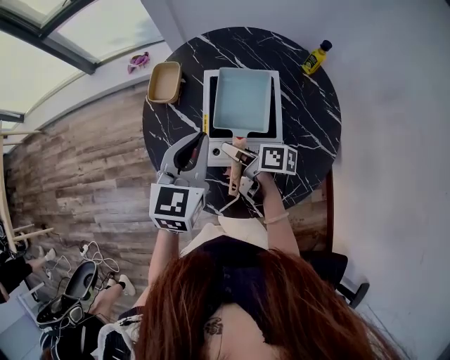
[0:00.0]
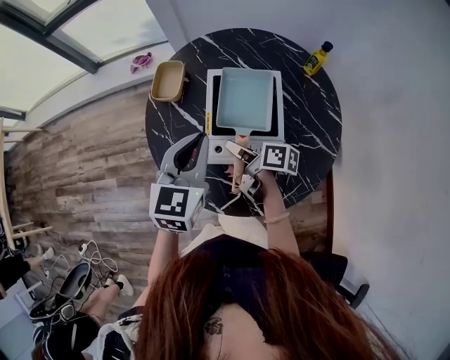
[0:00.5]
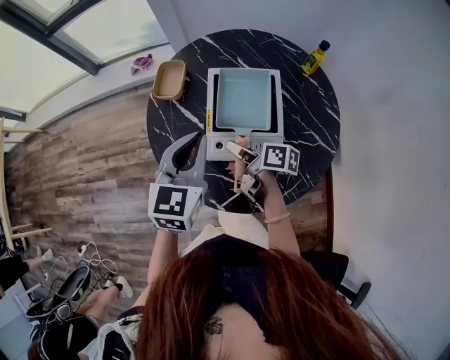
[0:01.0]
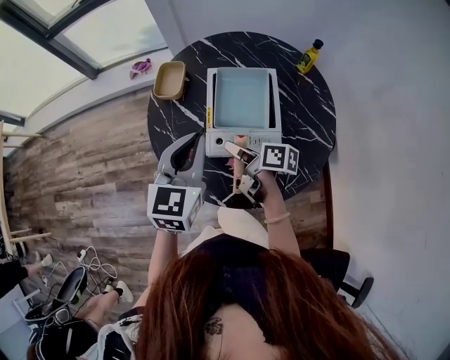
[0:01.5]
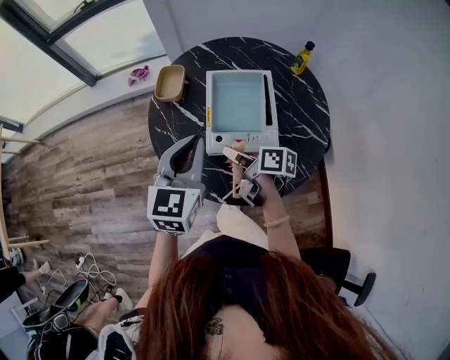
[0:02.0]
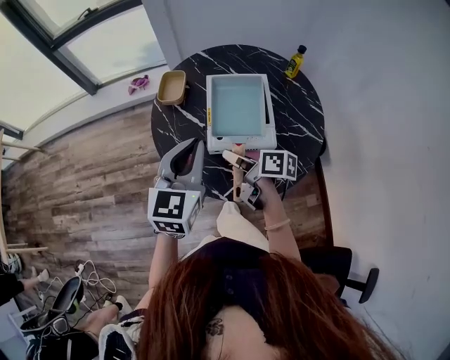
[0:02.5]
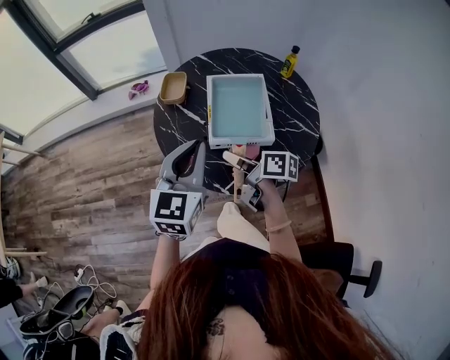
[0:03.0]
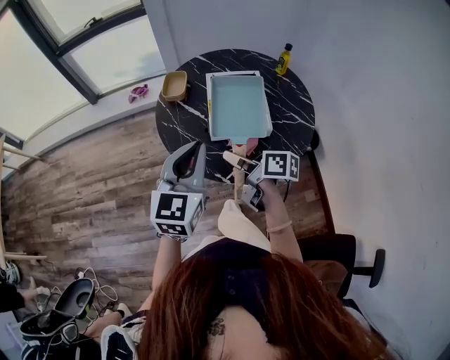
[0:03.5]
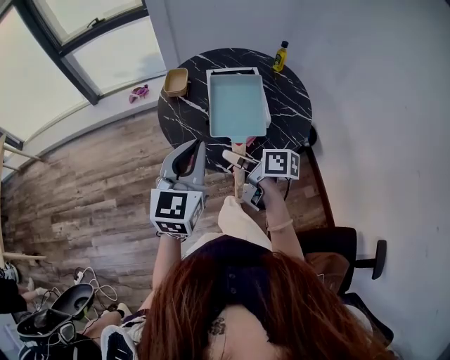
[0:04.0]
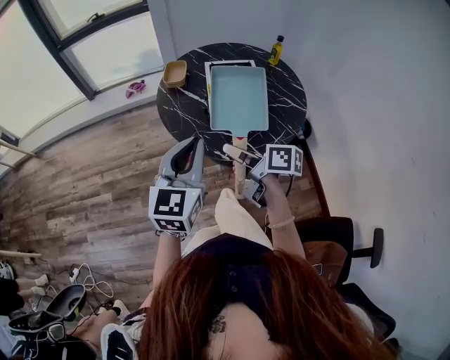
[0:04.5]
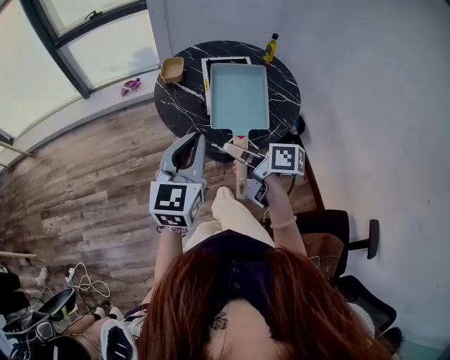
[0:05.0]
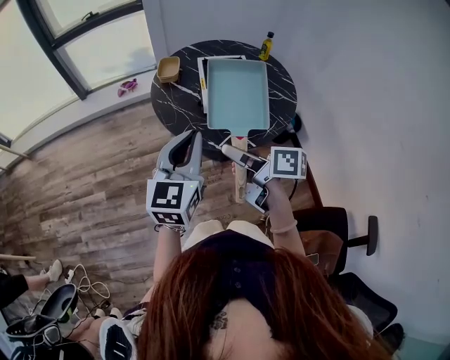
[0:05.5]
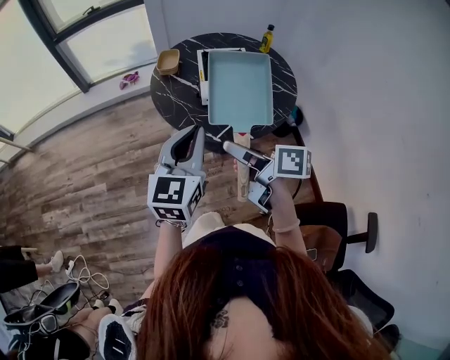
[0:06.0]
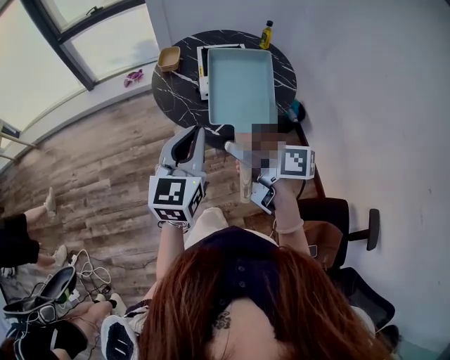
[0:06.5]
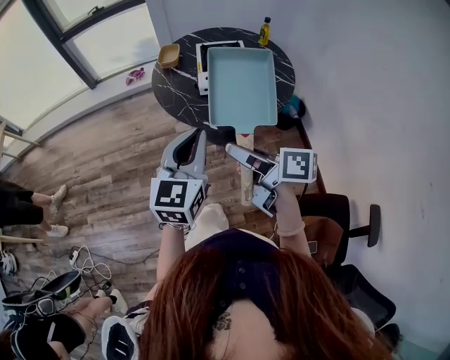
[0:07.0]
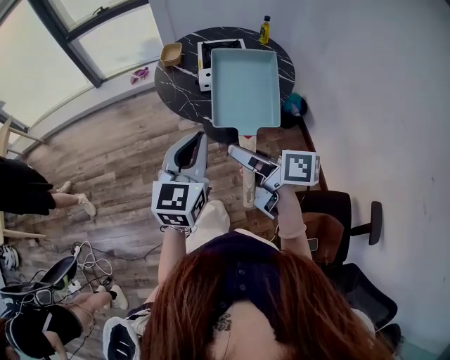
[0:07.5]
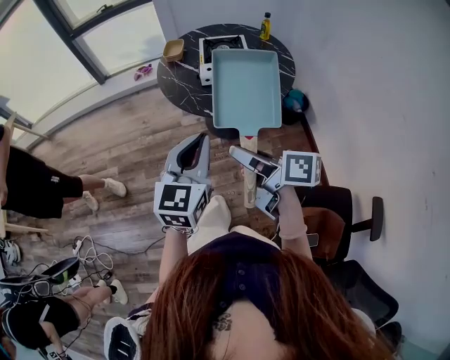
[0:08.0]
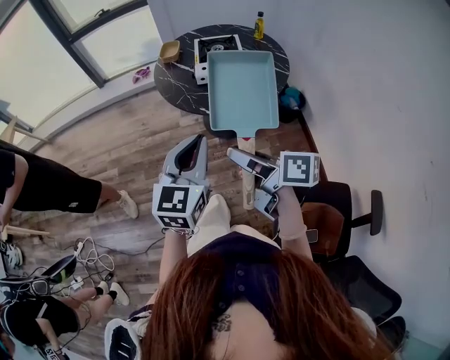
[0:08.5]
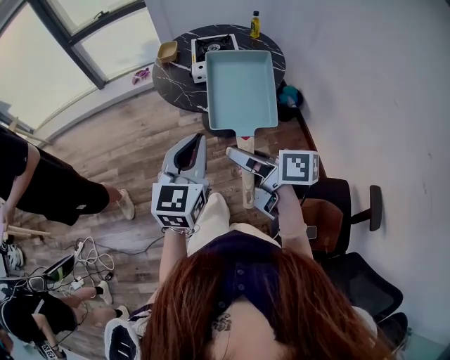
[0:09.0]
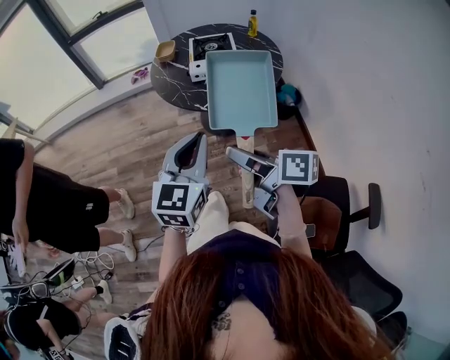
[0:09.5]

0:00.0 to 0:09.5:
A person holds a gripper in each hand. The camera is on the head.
0:00.0 to 0:02.0: The right gripper travels backward by roughly 5 cm. Meanwhile the left gripper shifts approximately 10 cm backward and to the left.
0:02.0 to 0:04.0: The left gripper heads backward and to the left, covering some 20 cm, while the right gripper shifts about 20 cm backward, upward and to the left.
0:04.0 to 0:05.5: The left gripper shifts approximately 10 cm backward, while the right gripper shifts approximately 15 cm backward and upward.
0:05.5 to 0:07.5: The grippers both shift backward by approximately 15 cm.
0:07.5 to 0:09.5: The grippers both shift backward by some 10 cm.

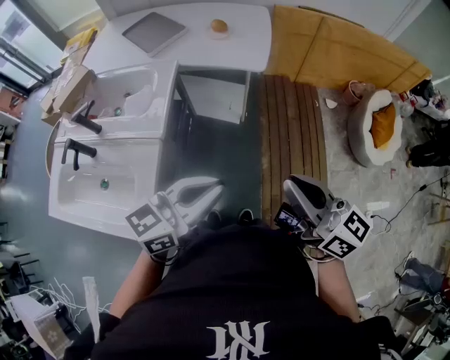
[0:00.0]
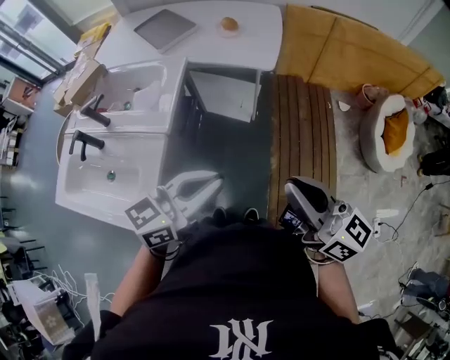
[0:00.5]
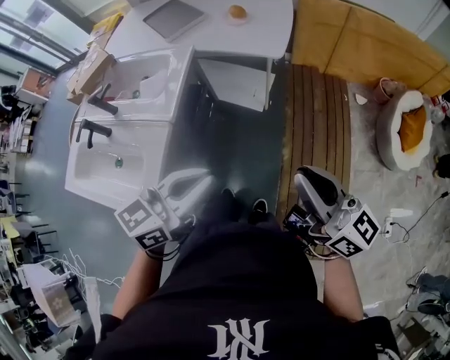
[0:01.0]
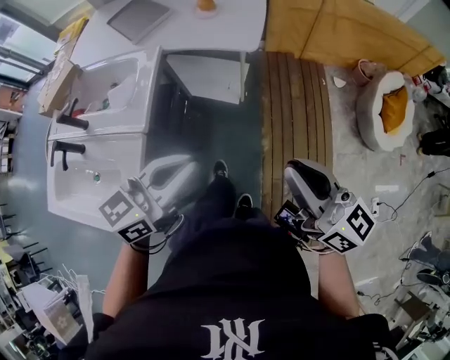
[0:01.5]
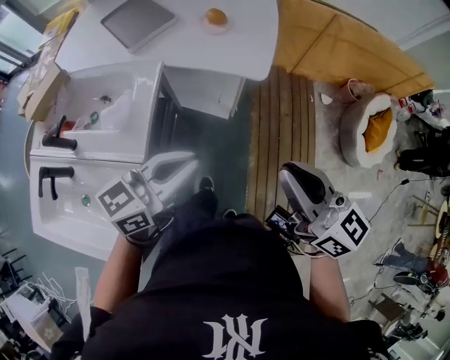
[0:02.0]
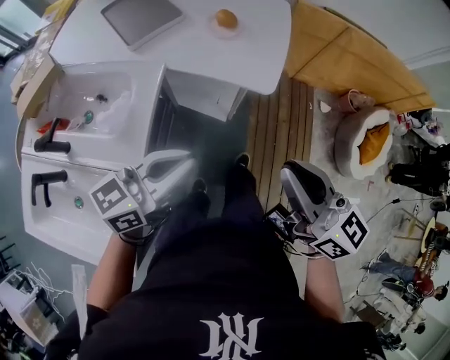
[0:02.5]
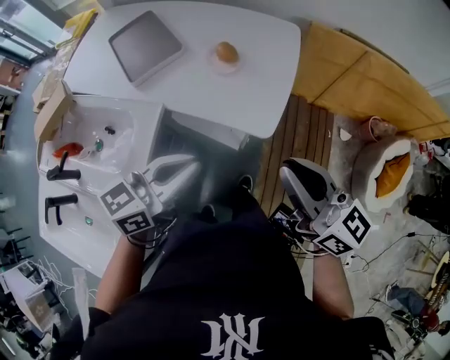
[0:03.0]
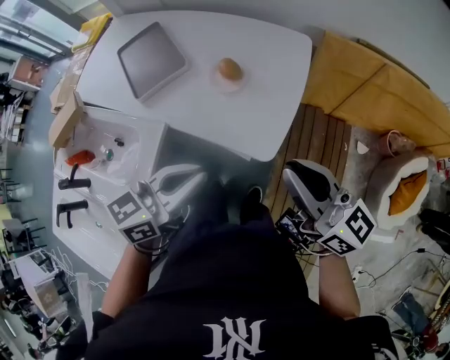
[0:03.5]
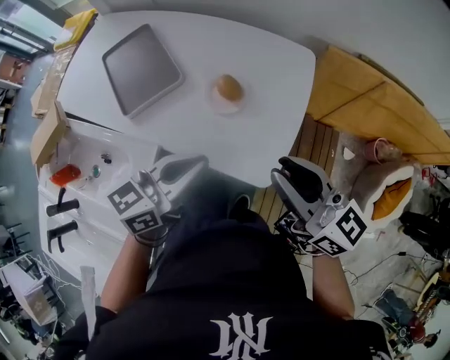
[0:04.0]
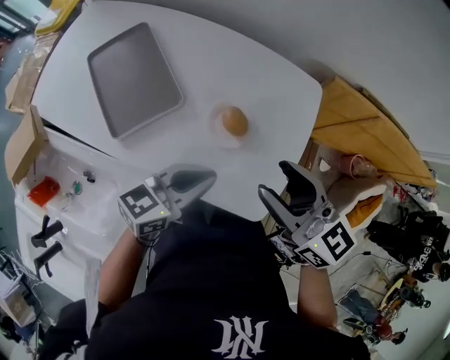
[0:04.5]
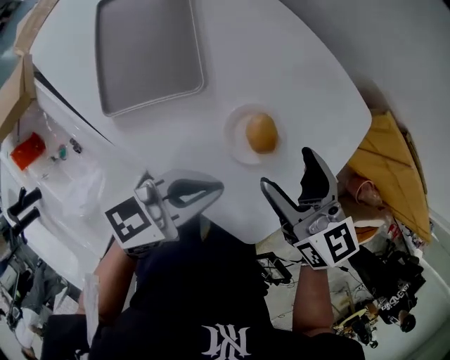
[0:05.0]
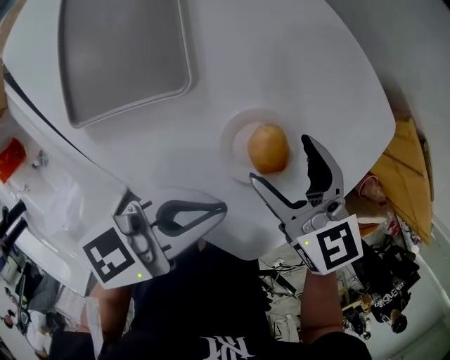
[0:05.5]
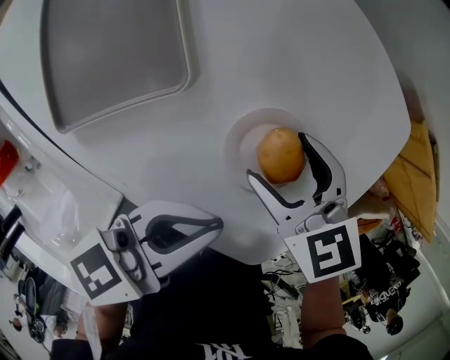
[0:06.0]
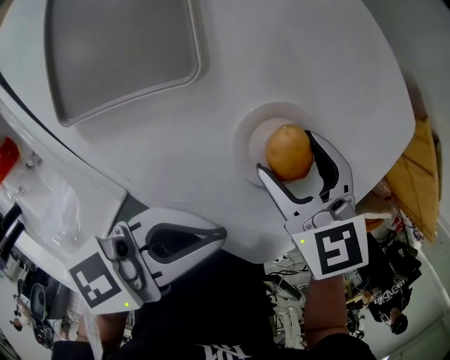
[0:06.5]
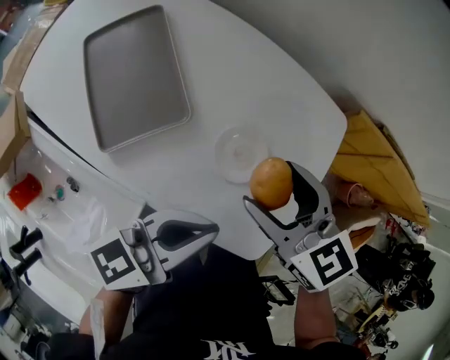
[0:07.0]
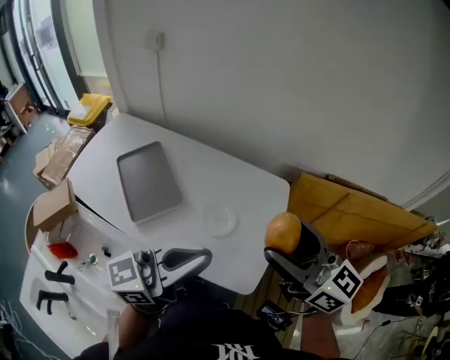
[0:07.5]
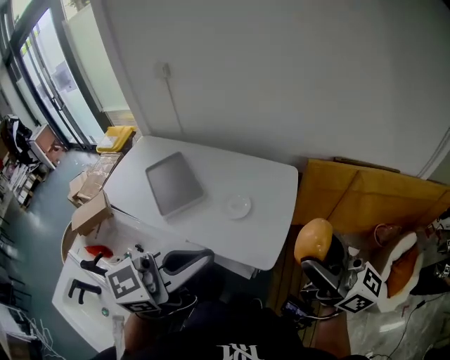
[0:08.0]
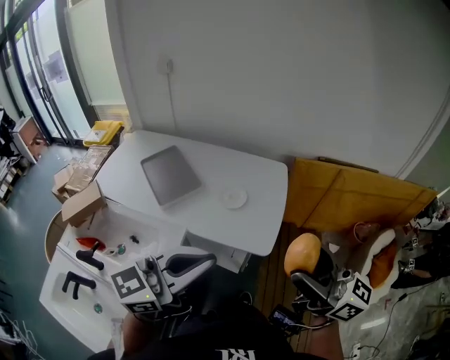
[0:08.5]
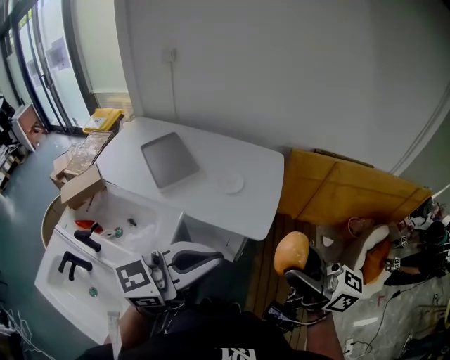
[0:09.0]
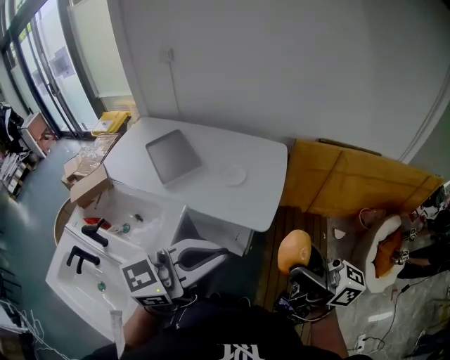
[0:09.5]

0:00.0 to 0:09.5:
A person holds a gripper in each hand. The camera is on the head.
0:00.0 to 0:02.0: Both grippers travel together forward, approximately 20 cm.
0:02.0 to 0:04.0: The two grippers travel together, forward, some 40 cm.
0:04.0 to 0:05.5: The left gripper travels forward and downward by roughly 25 cm, while the right gripper goes some 40 cm downward, forward and to the left, points its fingers approximately 30 degrees further downward, and opens its fingers.
0:05.5 to 0:07.5: Both grippers move upward and backward, roughly 40 cm. The right gripper points its fingers roughly 40 degrees further upward. The left gripper turns by approximately 40 degrees.
0:07.5 to 0:09.5: Both grippers move backward, some 35 cm. The right gripper changes its angle by about 30 degrees.

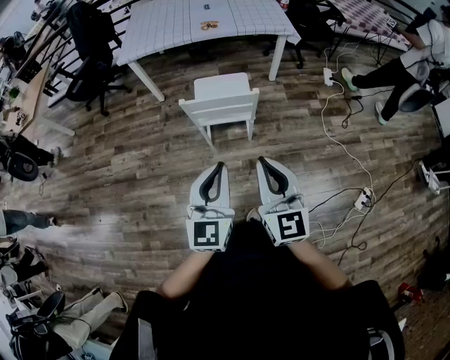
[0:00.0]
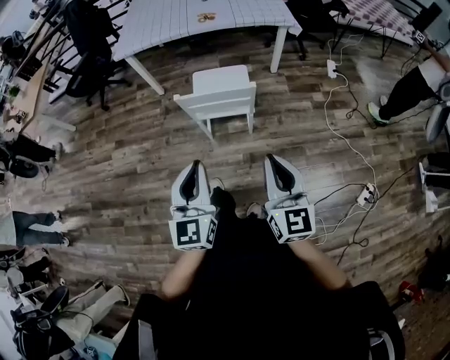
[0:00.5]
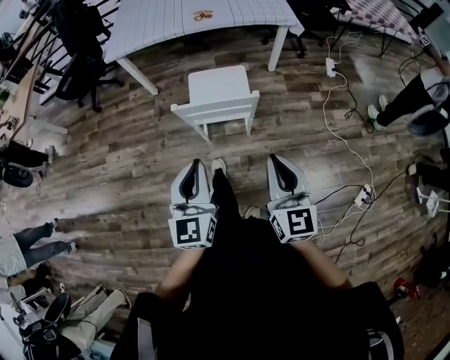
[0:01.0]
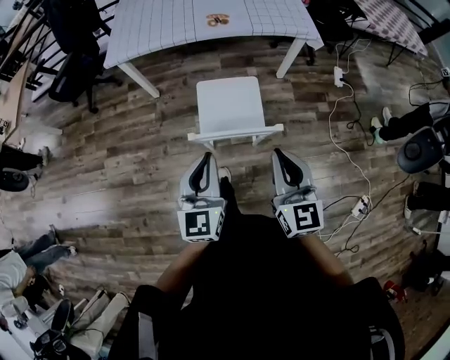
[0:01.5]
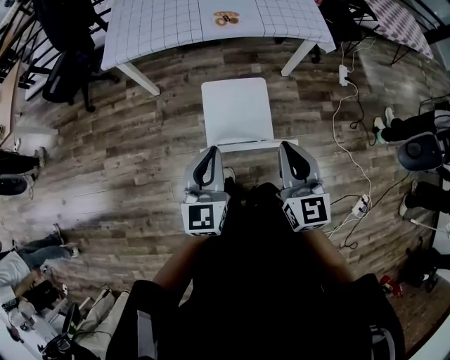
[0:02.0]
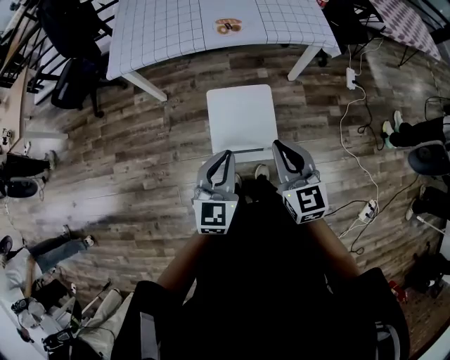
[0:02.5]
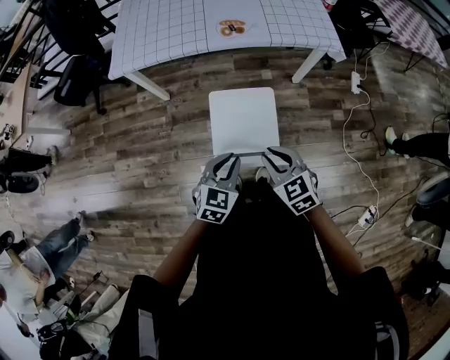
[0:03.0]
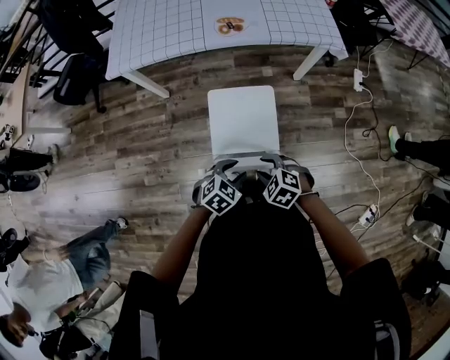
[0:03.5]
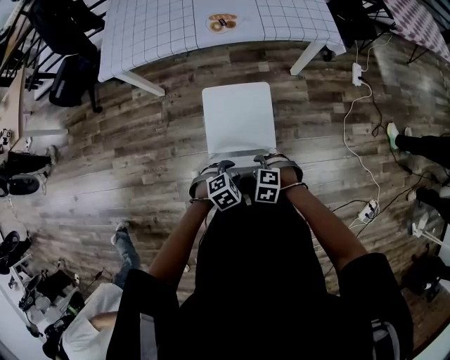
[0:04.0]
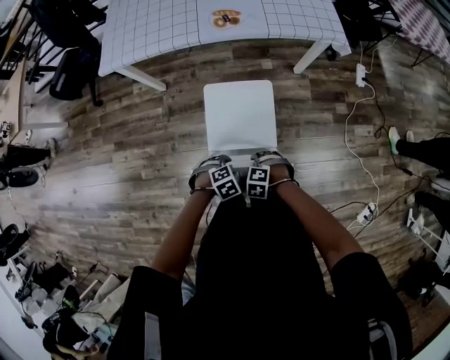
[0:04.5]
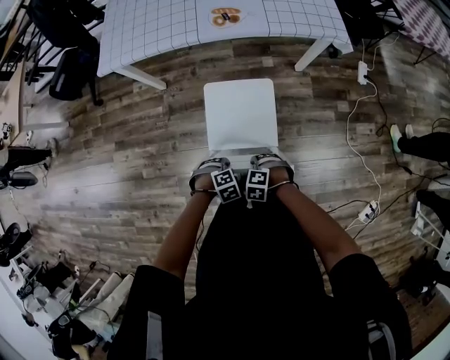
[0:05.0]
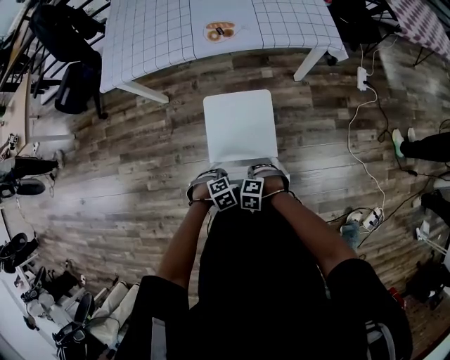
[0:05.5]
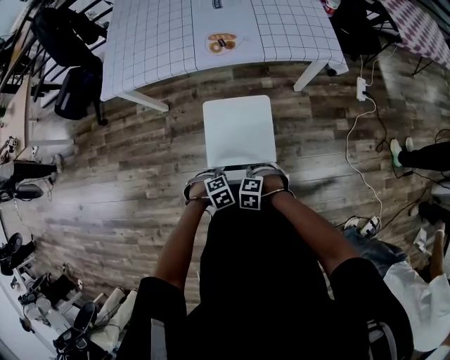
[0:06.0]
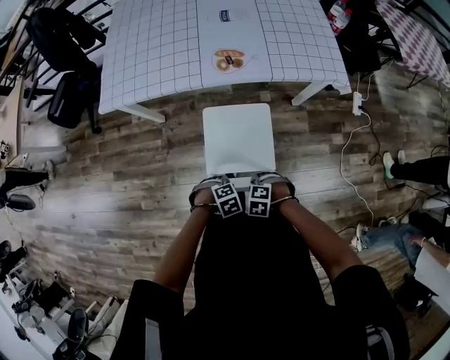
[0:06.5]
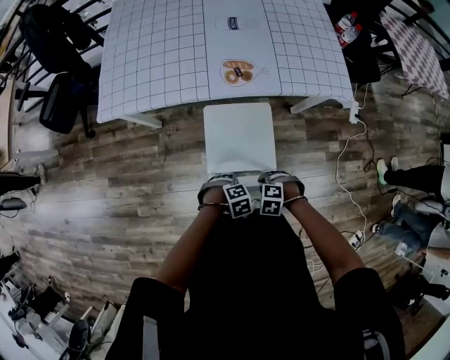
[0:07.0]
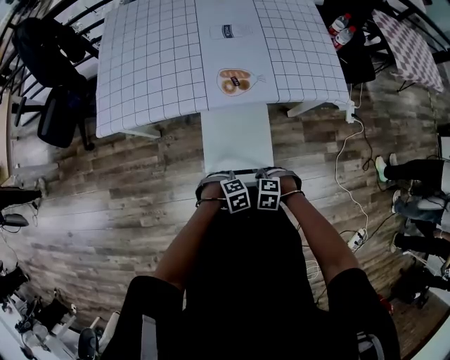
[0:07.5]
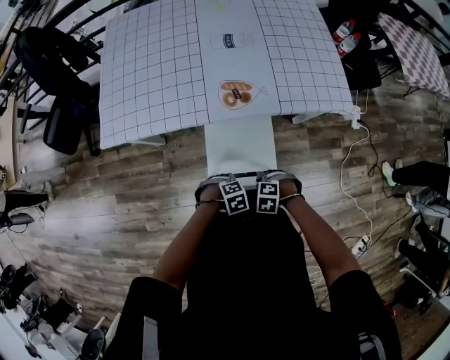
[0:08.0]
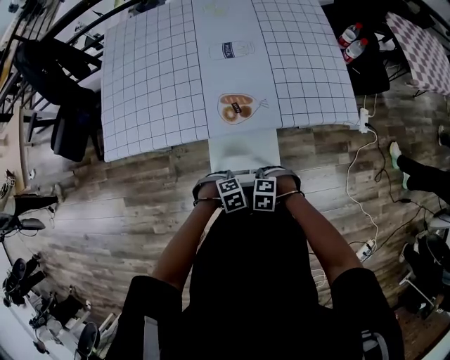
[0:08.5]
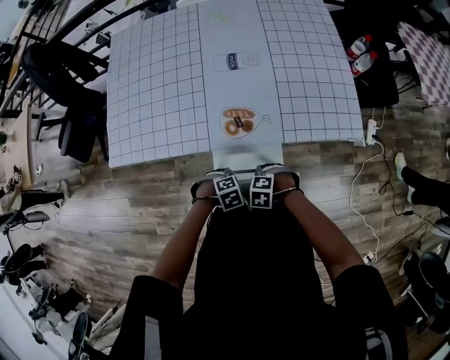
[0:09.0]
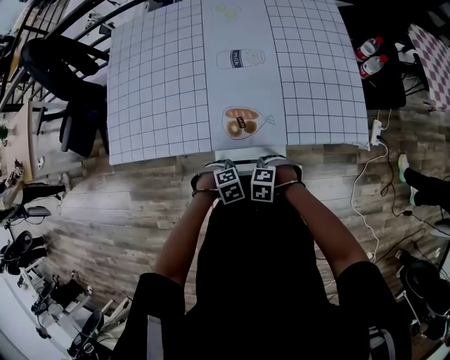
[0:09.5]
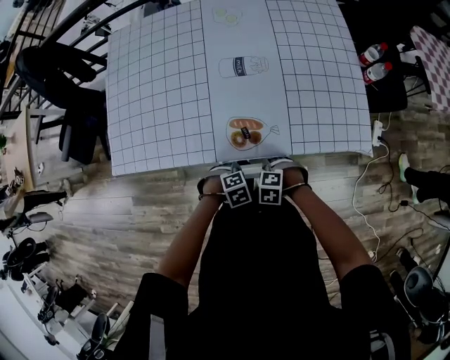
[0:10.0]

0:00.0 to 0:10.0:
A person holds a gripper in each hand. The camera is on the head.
0:00.0 to 0:02.0: The grippers both shift forward by some 35 cm.
0:02.0 to 0:04.0: Both grippers move downward, approximately 30 cm. The right gripper tilts its fingers some 60 degrees downward, and opens up; the left gripper angles its fingers downward, by some 60 degrees, and opens.
0:04.0 to 0:06.0: The right gripper shifts by approximately 5 cm, and closes; the left gripper moves roughly 10 cm.
0:06.0 to 0:08.0: The left gripper changes place by some 25 cm. Meanwhile the right gripper moves roughly 25 cm.
0:08.0 to 0:10.0: The right gripper ends up approximately 20 cm from where it was. Meanwhile the left gripper moves approximately 20 cm.
